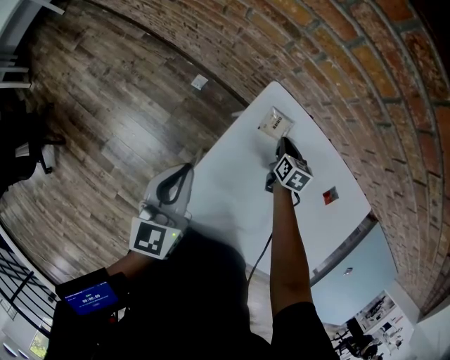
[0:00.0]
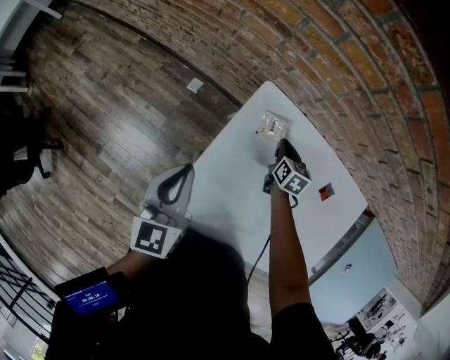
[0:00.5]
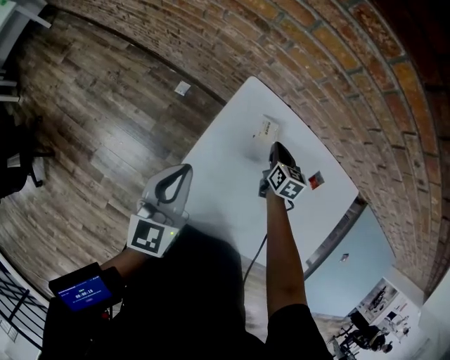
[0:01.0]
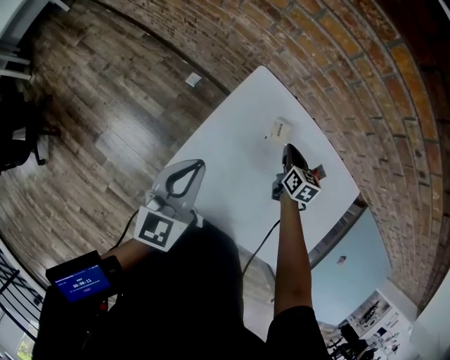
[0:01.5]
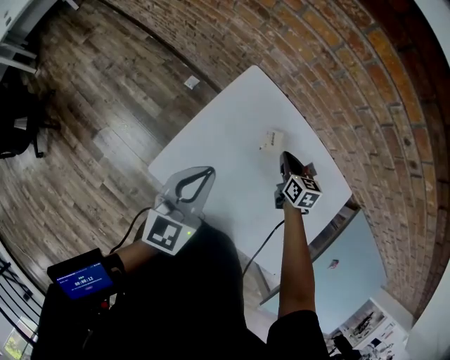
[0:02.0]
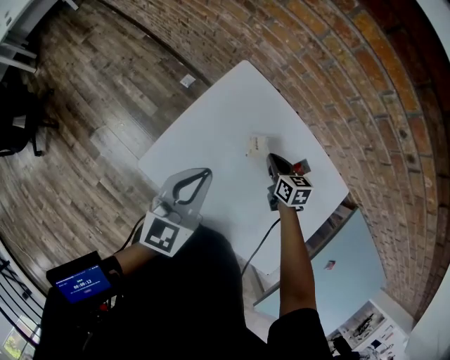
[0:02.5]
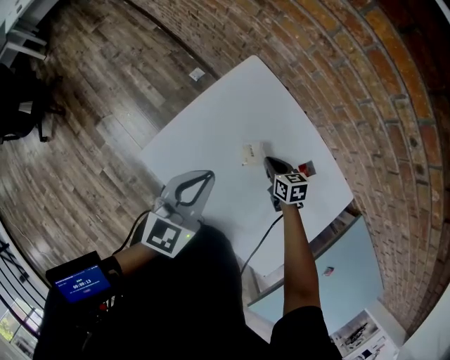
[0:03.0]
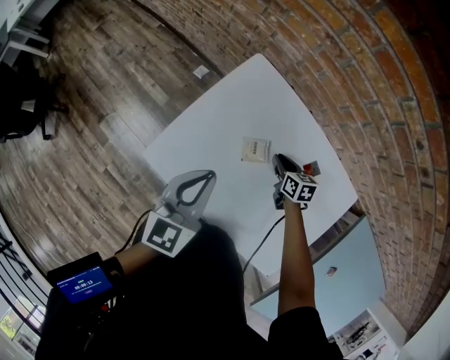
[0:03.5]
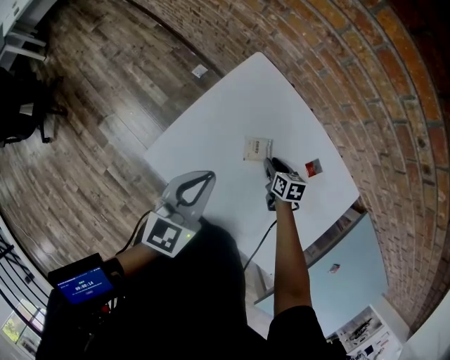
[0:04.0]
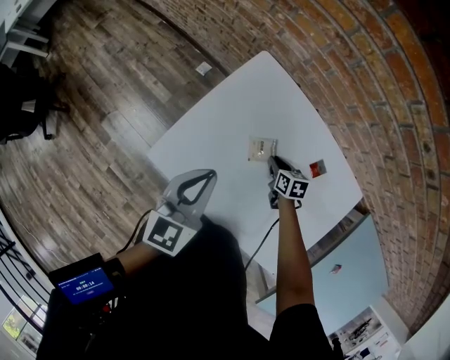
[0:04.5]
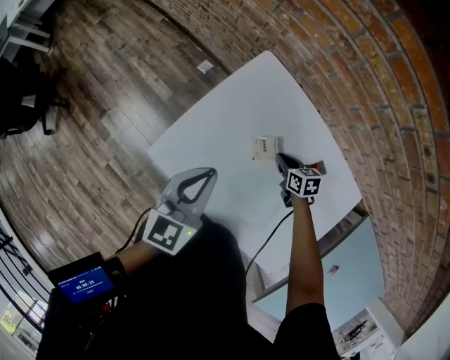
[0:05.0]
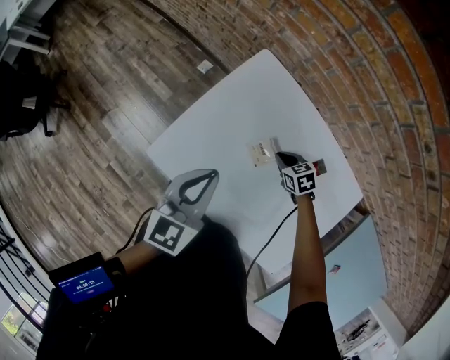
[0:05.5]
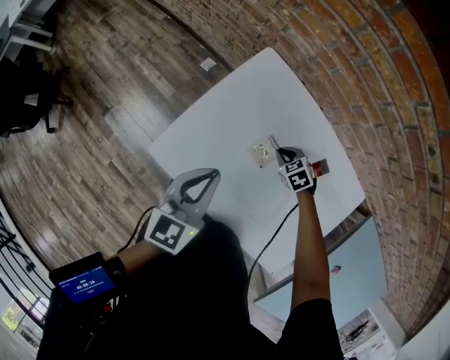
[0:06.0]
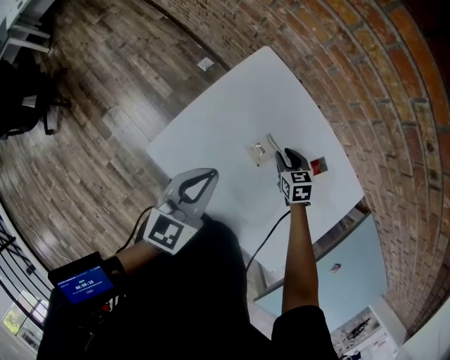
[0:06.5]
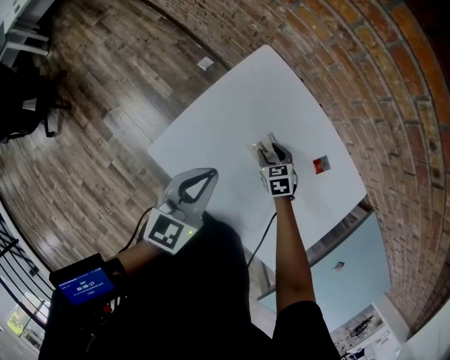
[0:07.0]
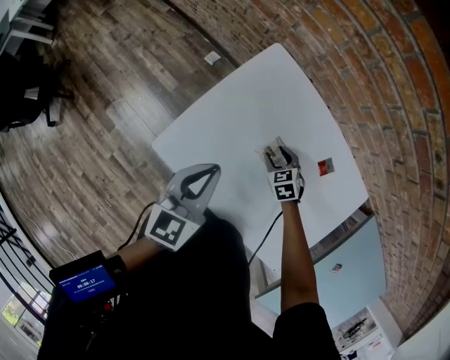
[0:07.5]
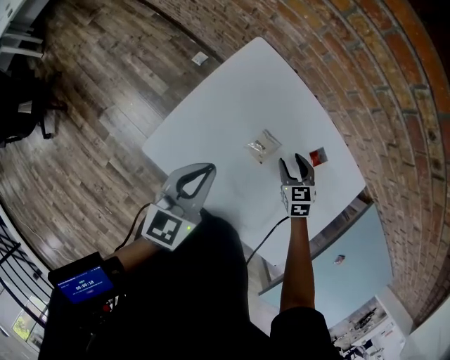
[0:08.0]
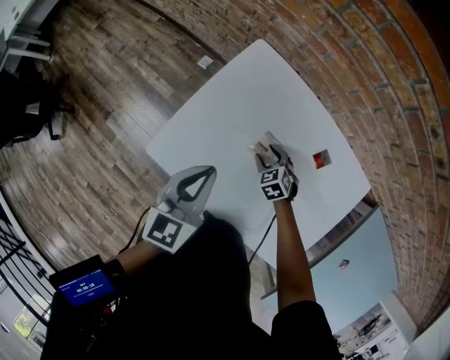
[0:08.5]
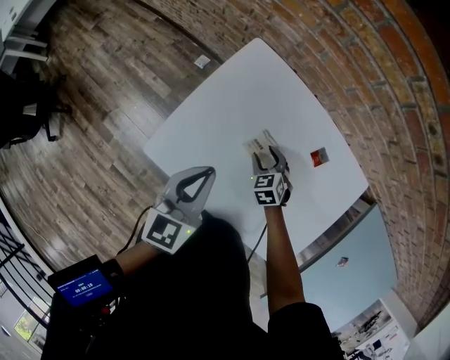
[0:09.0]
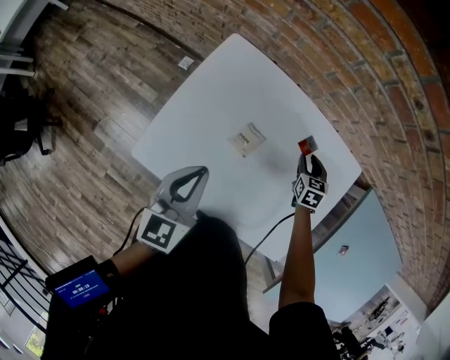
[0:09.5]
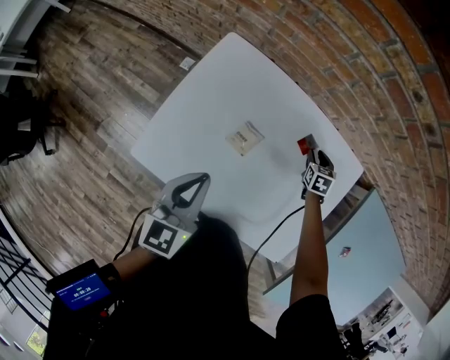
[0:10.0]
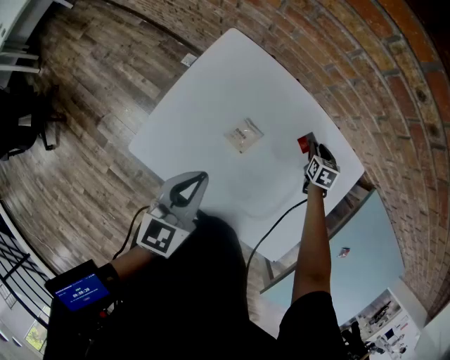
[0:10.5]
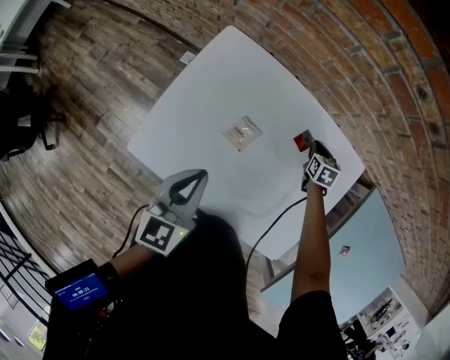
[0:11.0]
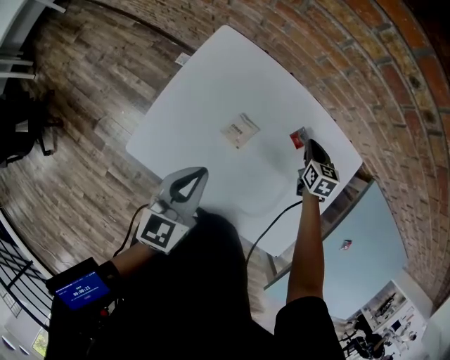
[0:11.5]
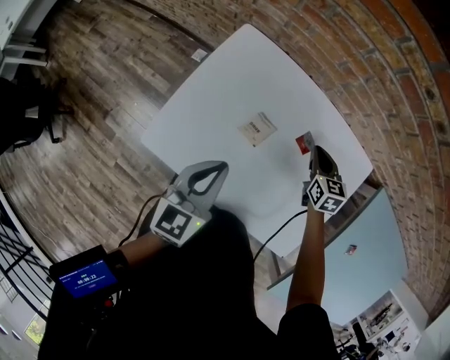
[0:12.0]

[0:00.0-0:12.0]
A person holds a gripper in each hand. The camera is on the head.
0:00.0 to 0:02.0: The left gripper goes approximately 20 cm to the right, backward and upward, while the right gripper travels backward, upward and to the right by roughly 20 cm.
0:02.0 to 0:04.0: The right gripper heads downward and backward, covering some 10 cm, and opens.
0:04.0 to 0:06.0: The right gripper twists roughly 40 degrees counterclockwise, seen from behind, and closes.
0:06.0 to 0:08.0: The right gripper heads upward, covering about 5 cm, turns by about 30 degrees, and opens up.
0:08.0 to 0:10.0: The right gripper is displaced to the right by some 20 cm, and rotates approximately 30 degrees; the left gripper goes roughly 5 cm to the right.
0:10.0 to 0:12.0: The right gripper heads upward and to the left, covering roughly 15 cm, swivels some 20 degrees, and closes.

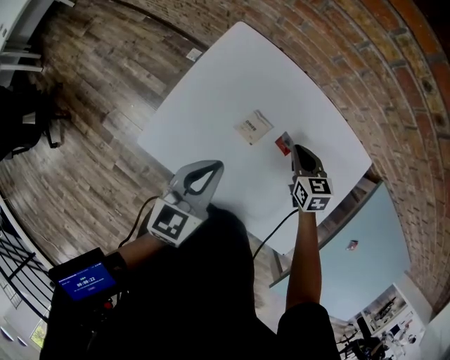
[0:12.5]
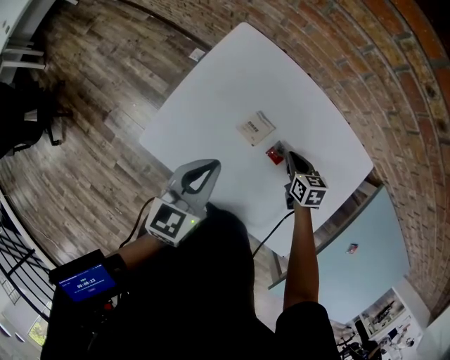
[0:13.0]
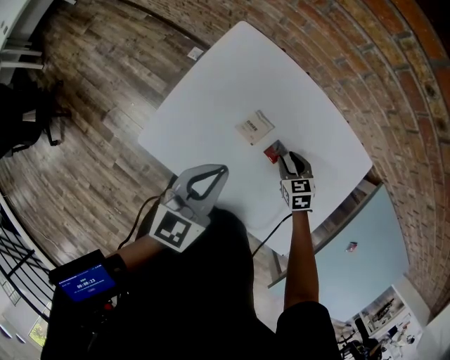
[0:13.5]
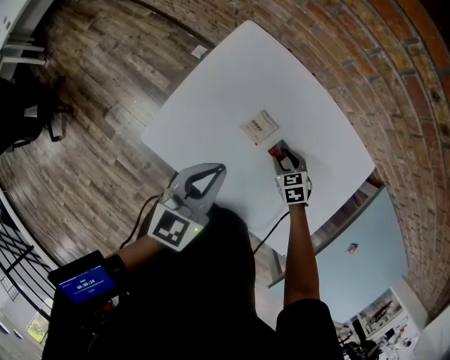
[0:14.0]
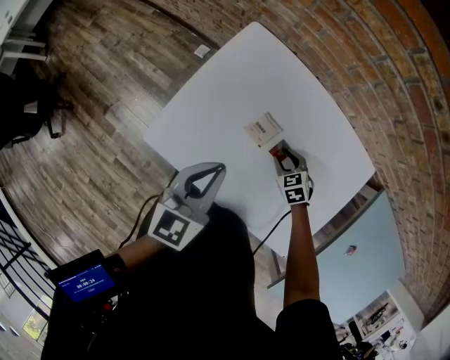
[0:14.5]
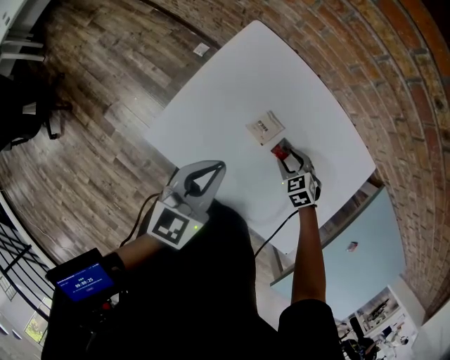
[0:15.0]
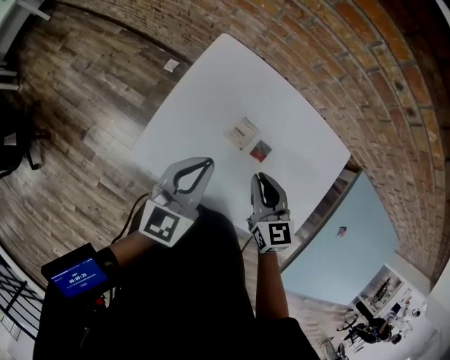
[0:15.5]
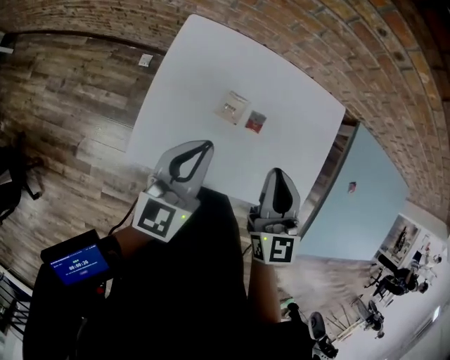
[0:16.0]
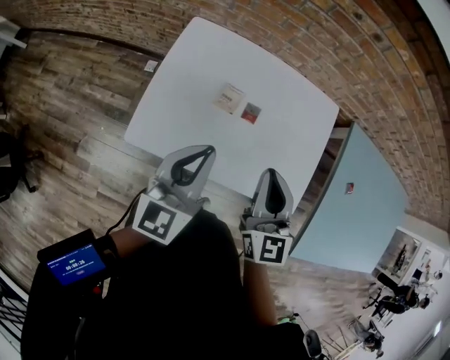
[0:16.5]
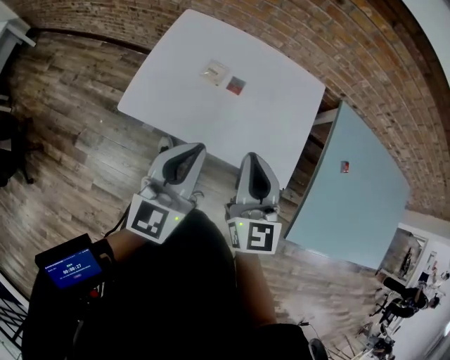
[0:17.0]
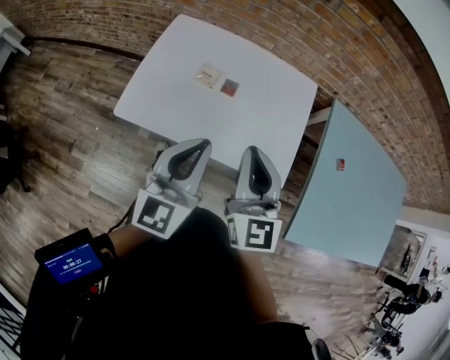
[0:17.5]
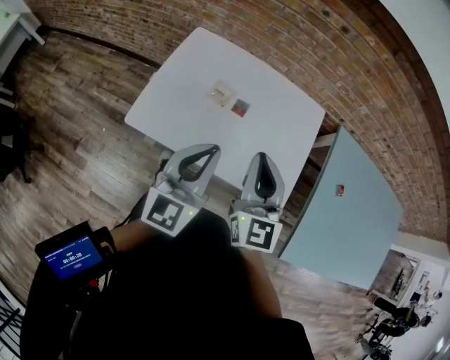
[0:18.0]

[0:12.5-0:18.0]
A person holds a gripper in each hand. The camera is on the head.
0:12.5 to 0:14.5: The right gripper heads downward, covering approximately 10 cm, swivels some 30 degrees, and opens up.
0:14.5 to 0:16.0: The left gripper travels upward by some 5 cm. Meanwhile the right gripper moves upward, roughly 35 cm, tips its fingers upward by about 50 degrees, and closes.
0:16.0 to 0:18.0: The two grippers go approximately 15 cm backward and to the right.

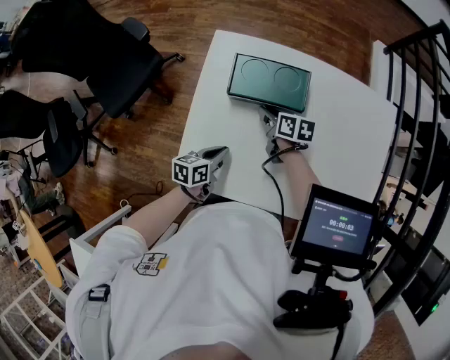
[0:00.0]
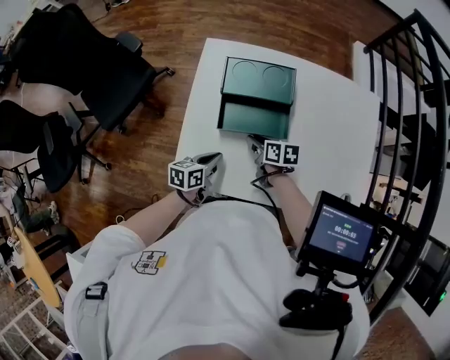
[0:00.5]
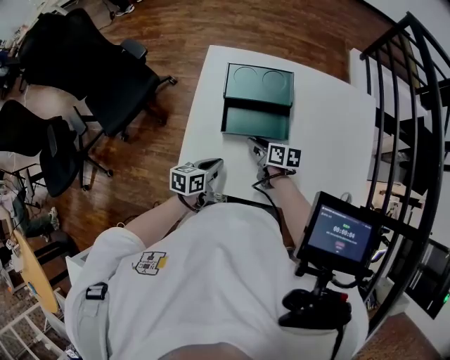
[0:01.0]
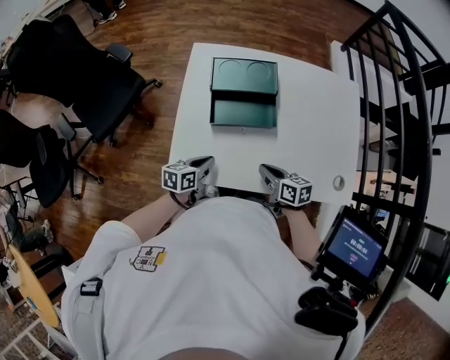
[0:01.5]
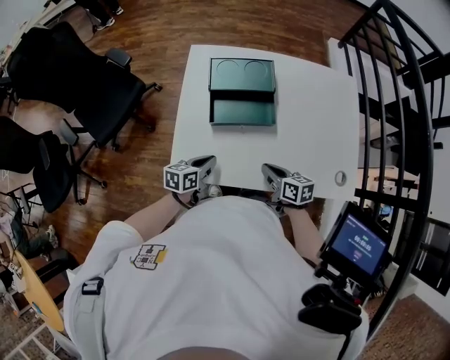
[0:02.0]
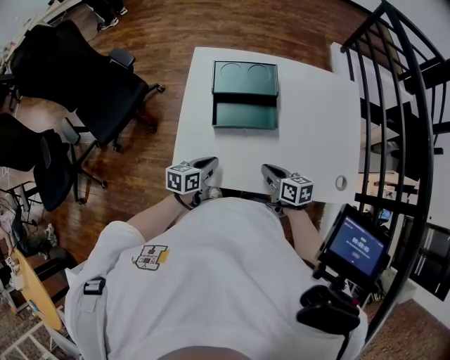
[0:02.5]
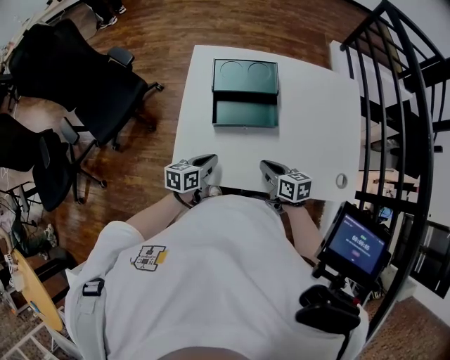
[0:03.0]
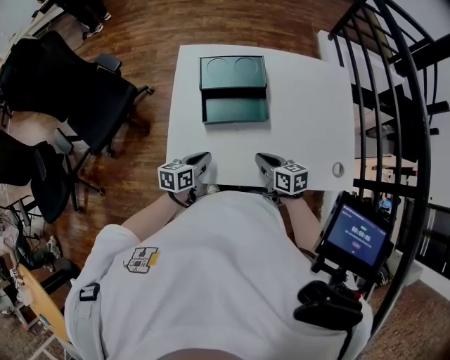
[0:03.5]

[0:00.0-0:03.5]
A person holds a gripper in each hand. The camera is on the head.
0:00.0 to 0:02.0: The right gripper travels backward by some 25 cm, while the left gripper moves backward, about 5 cm.
0:02.0 to 0:03.5: The grippers move only a little.

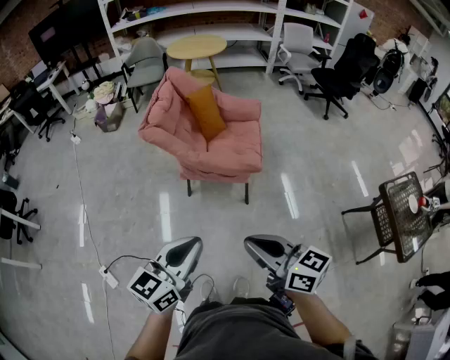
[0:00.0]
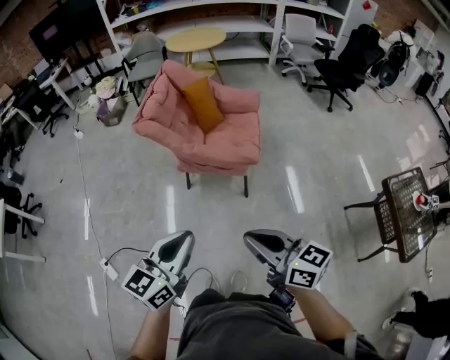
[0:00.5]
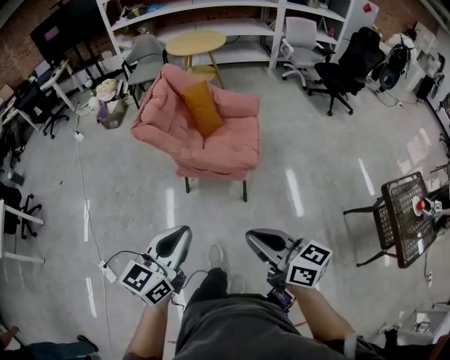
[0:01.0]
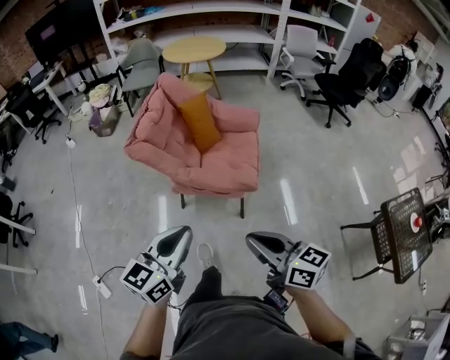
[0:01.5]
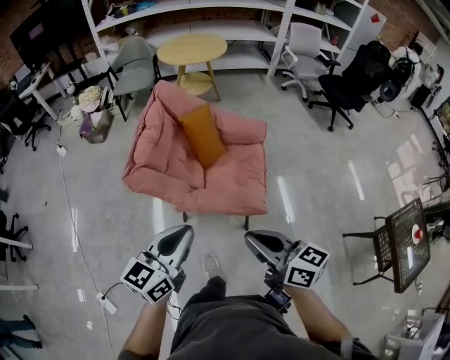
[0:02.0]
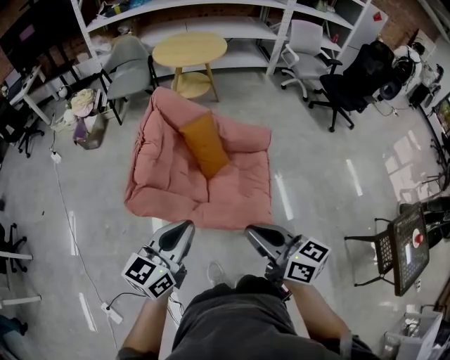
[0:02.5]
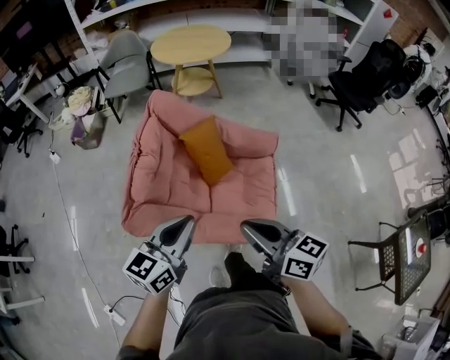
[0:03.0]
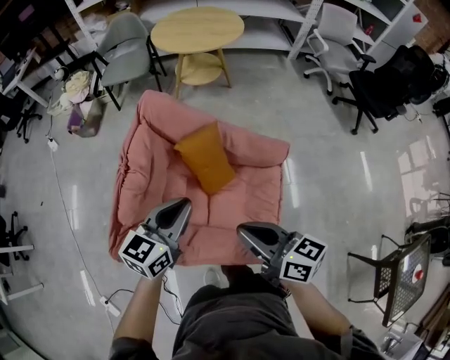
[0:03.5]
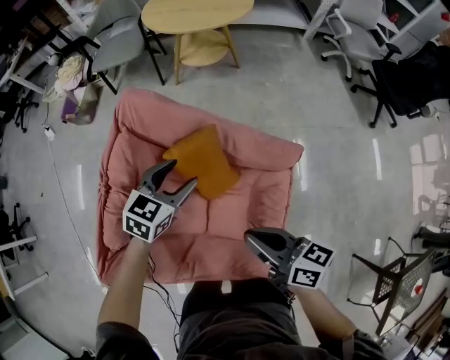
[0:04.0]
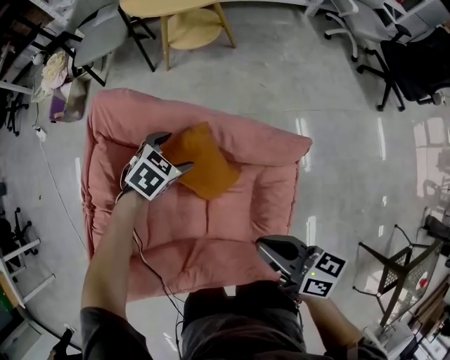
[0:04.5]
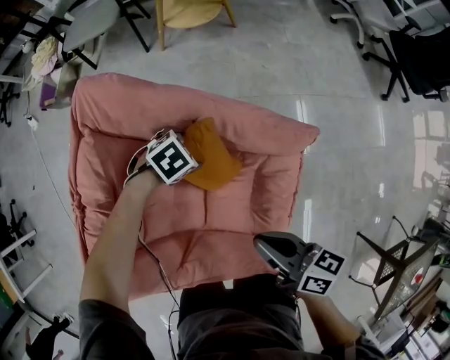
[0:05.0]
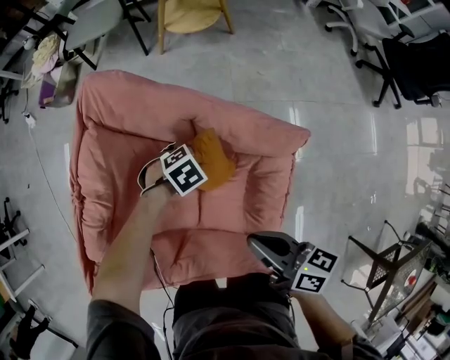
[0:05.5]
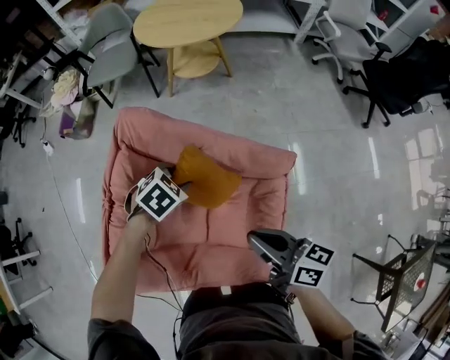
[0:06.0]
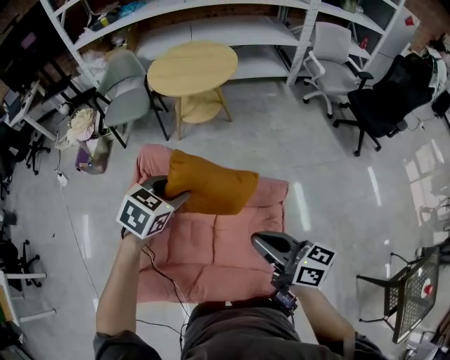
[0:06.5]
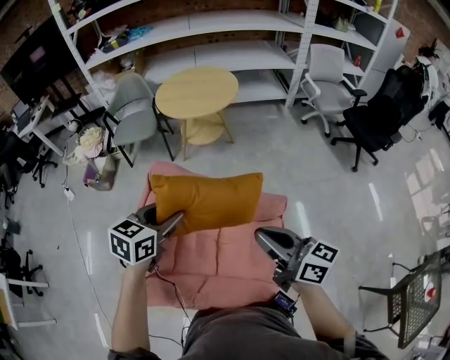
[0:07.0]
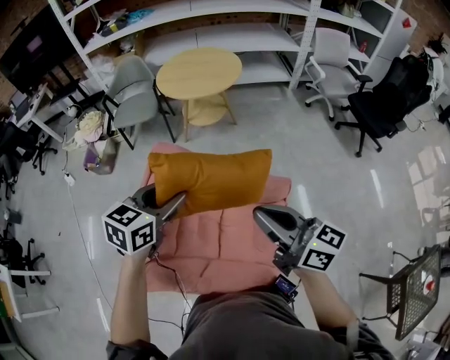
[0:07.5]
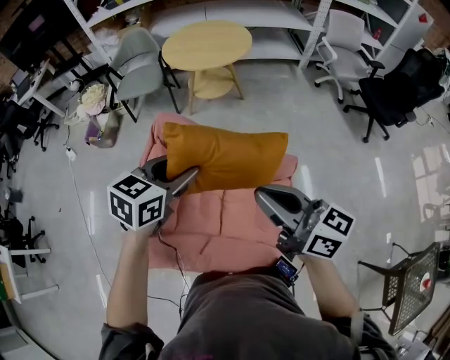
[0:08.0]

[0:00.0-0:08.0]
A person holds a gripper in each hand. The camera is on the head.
0:00.0 to 0:02.0: Both grippers move forward, roughly 35 cm.
0:02.0 to 0:04.0: The pair of grippers is taken forward, roughly 50 cm. The left gripper swivels about 30 degrees, and opens.
0:04.0 to 0:06.0: The left gripper travels downward and back again, roughly 25 cm each way, tips its fingers downward by roughly 30 degrees, and opens, then closes once more; the right gripper travels downward and back again, about 10 cm each way.
0:06.0 to 0:08.0: The two grippers go roughly 25 cm upward. The right gripper changes its angle by approximately 20 degrees. Meanwhile the left gripper points its fingers roughly 40 degrees further upward.